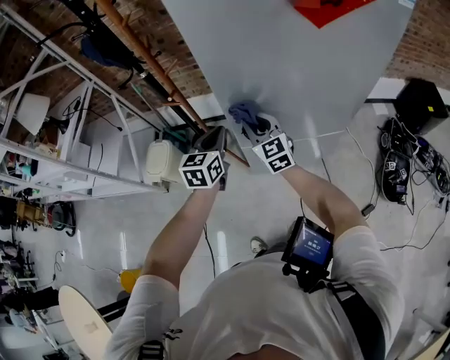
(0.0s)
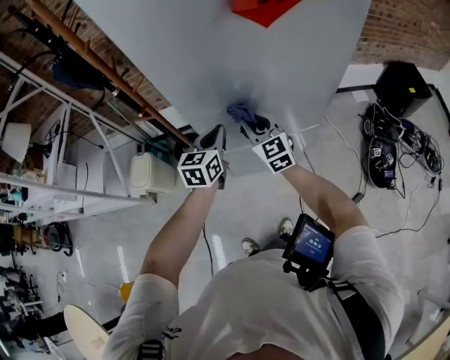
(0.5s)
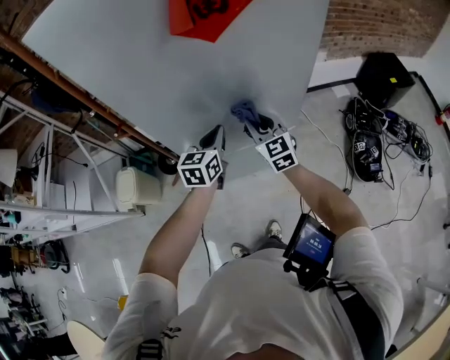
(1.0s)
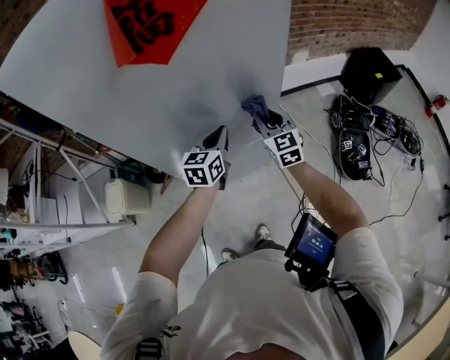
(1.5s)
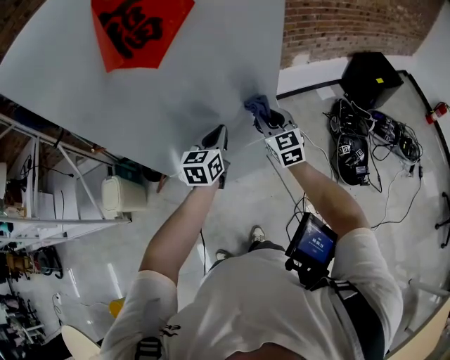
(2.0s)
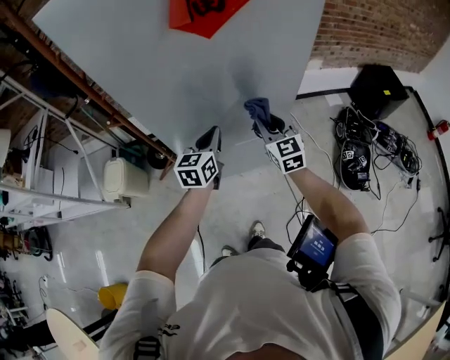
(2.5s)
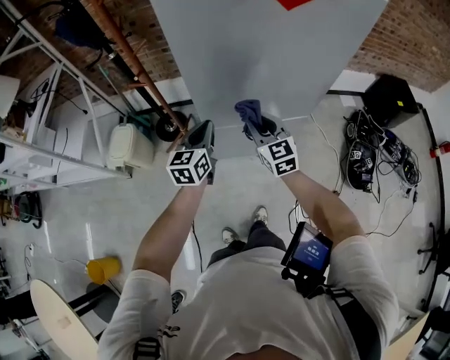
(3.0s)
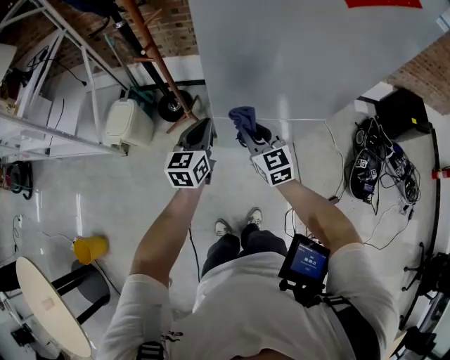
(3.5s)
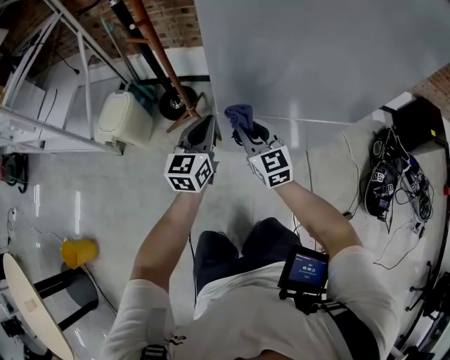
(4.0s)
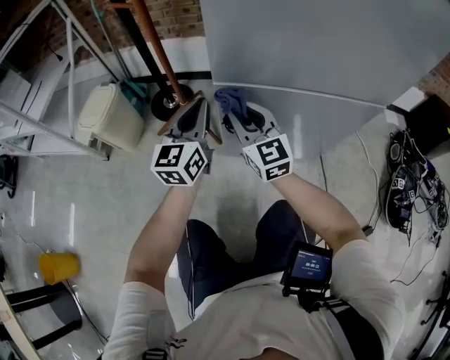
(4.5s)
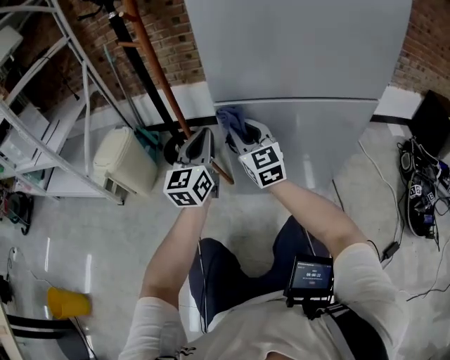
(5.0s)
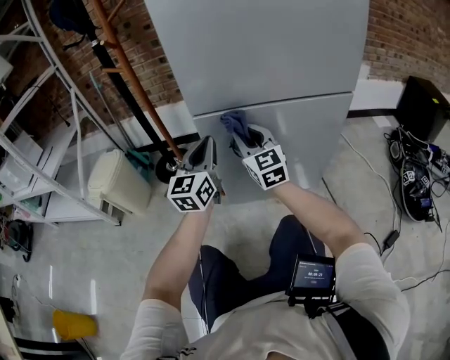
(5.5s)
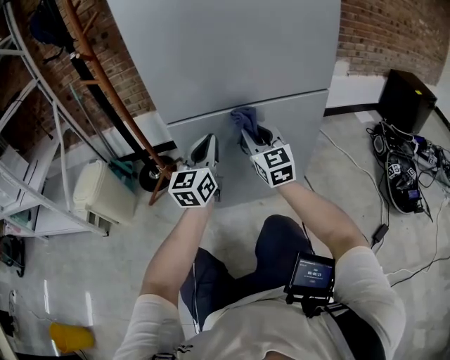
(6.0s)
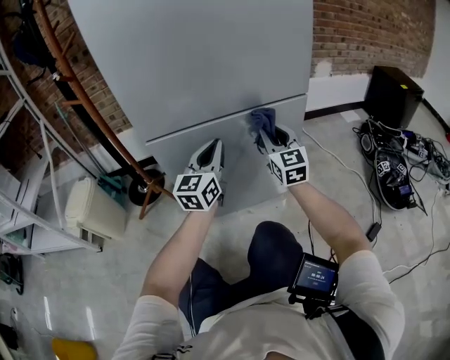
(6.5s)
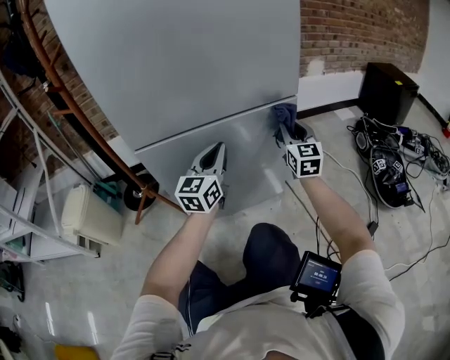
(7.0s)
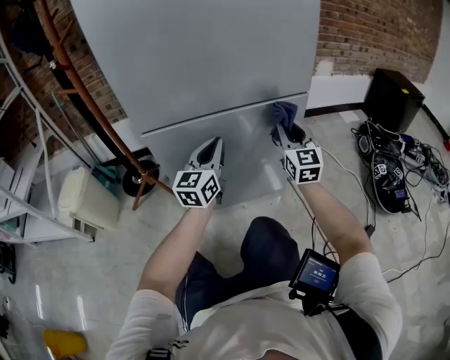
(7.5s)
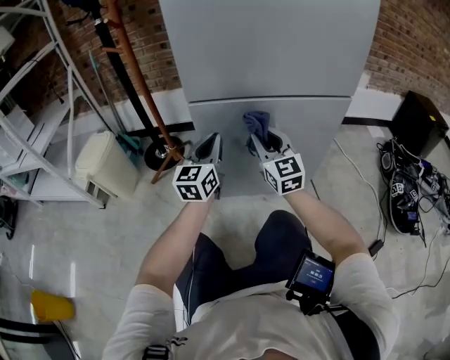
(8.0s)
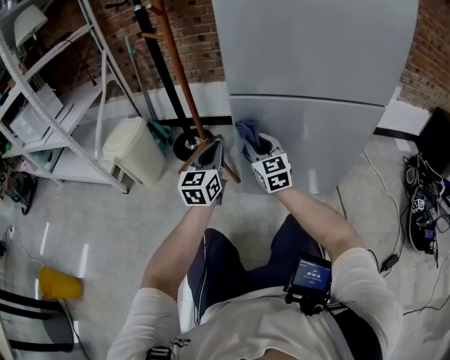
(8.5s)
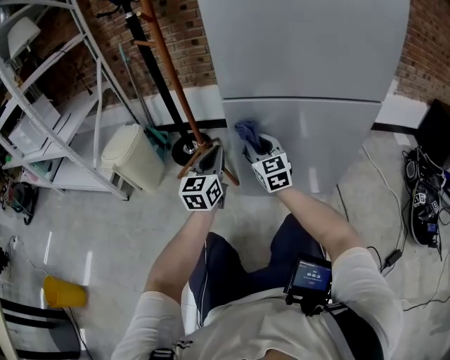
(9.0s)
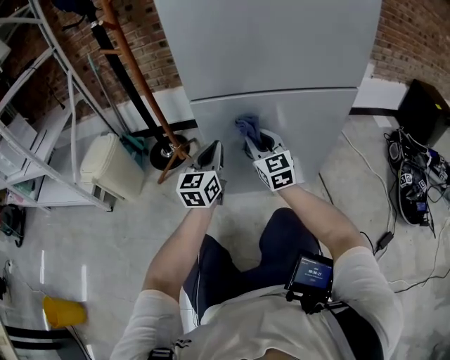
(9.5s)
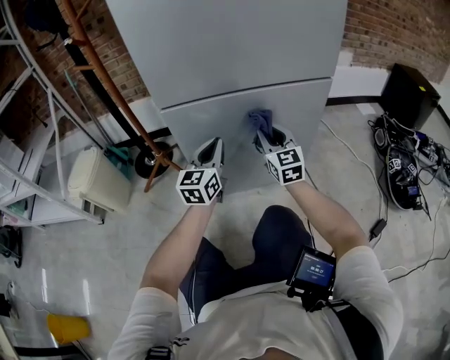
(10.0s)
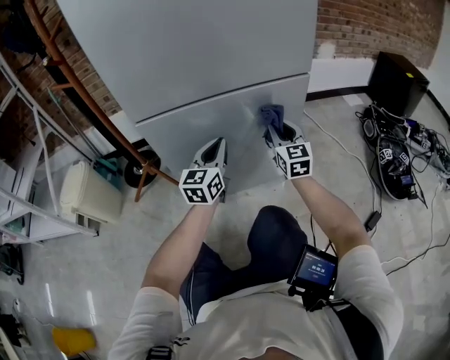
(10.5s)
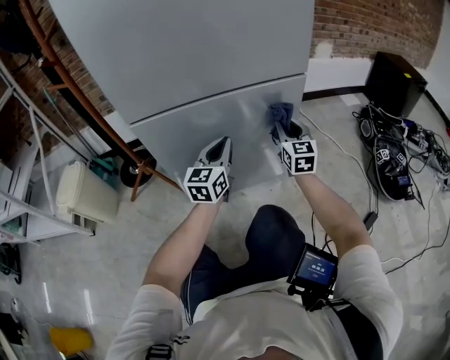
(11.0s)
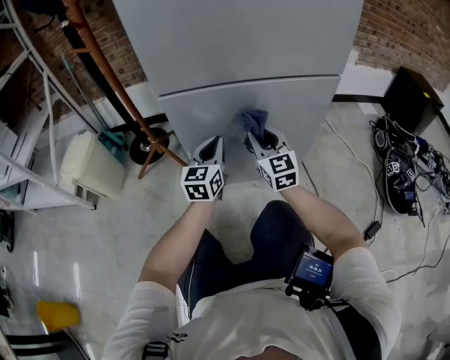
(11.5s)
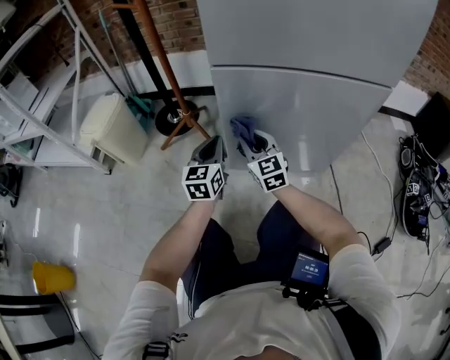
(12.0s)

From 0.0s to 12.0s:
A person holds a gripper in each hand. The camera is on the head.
From 0.0s to 2.0s: The grippers both shift to the right by some 35 cm.
From 2.0s to 4.0s: Both grippers travel together to the left and downward, approximately 40 cm. The right gripper rotates about 30 degrees. Meanwhile the left gripper turns by approximately 20 degrees.
From 4.0s to 6.0s: The left gripper goes about 20 cm downward and to the right, and rotates roughly 20 degrees, while the right gripper moves to the right and downward, approximately 20 cm, and changes its angle by approximately 30 degrees.
From 6.0s to 8.0s: The left gripper travels to the right and back again, some 15 cm each way, while the right gripper travels to the right and back again, roughly 25 cm each way.
From 8.0s to 10.0s: The left gripper is displaced to the right by some 5 cm. The right gripper moves to the right and downward, approximately 10 cm.
From 10.0s to 12.0s: The left gripper moves roughly 15 cm, while the right gripper moves some 20 cm, and rotates about 20 degrees.

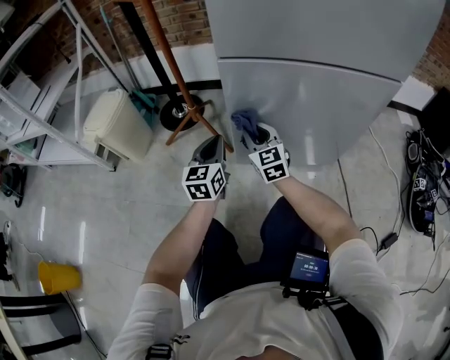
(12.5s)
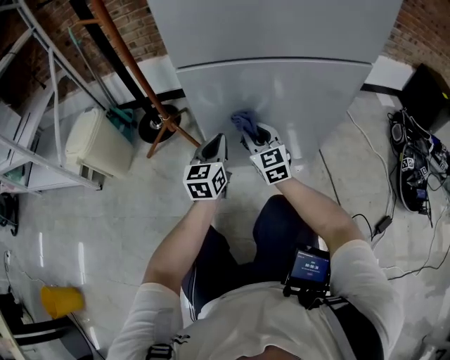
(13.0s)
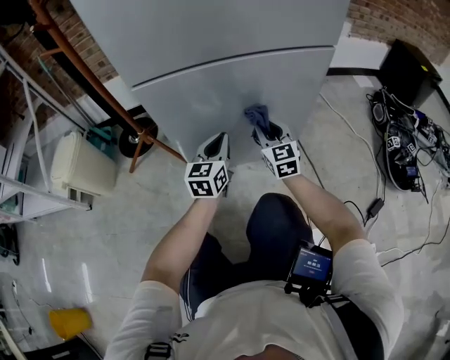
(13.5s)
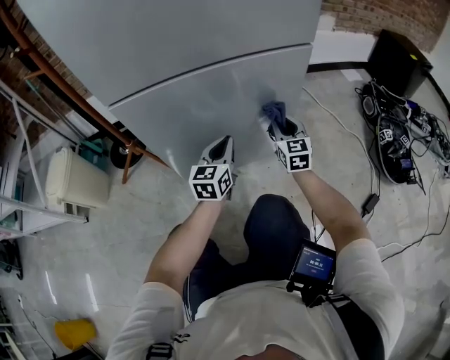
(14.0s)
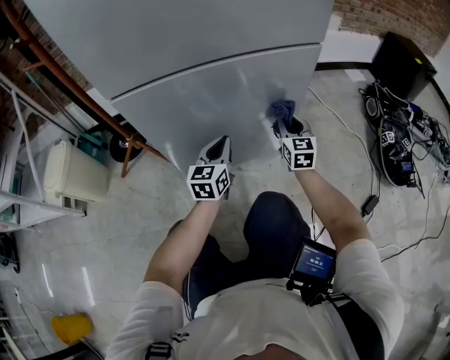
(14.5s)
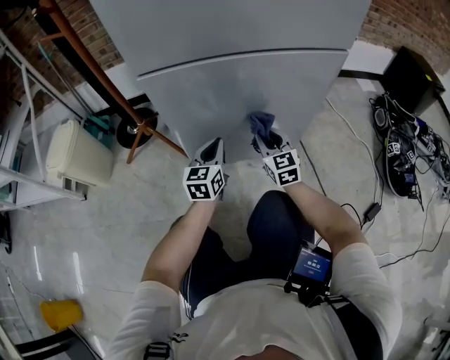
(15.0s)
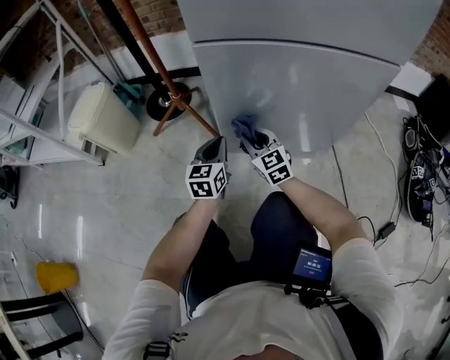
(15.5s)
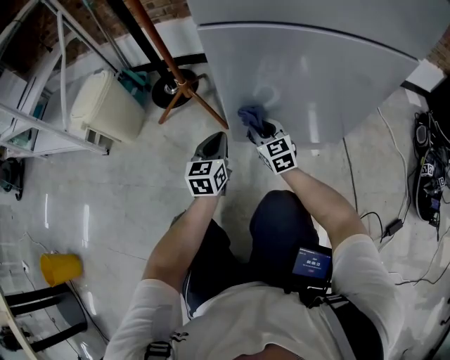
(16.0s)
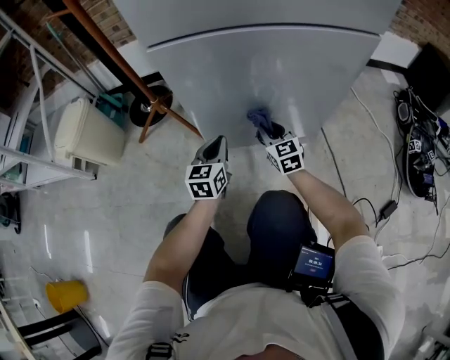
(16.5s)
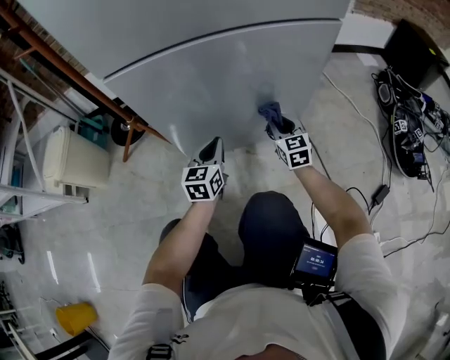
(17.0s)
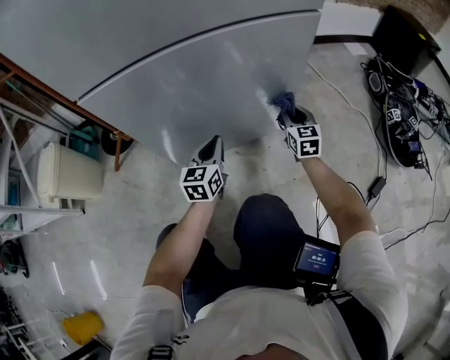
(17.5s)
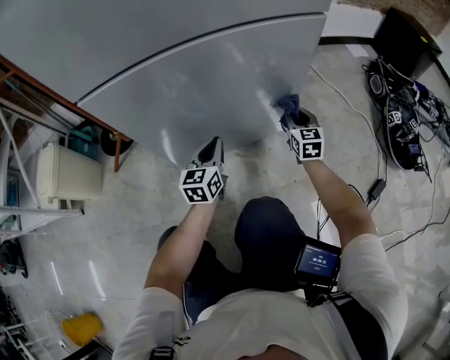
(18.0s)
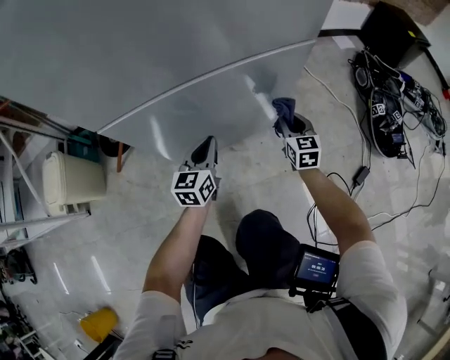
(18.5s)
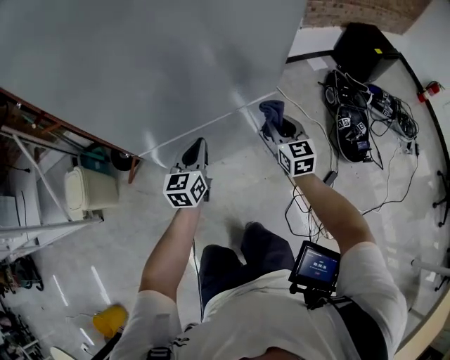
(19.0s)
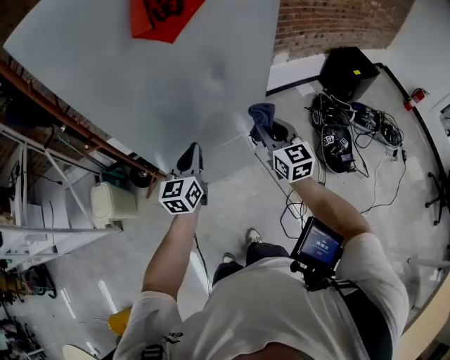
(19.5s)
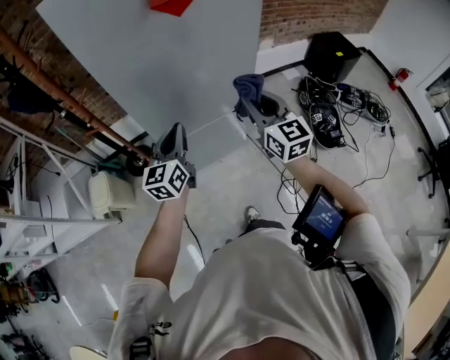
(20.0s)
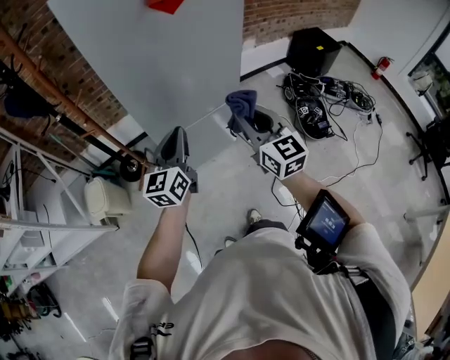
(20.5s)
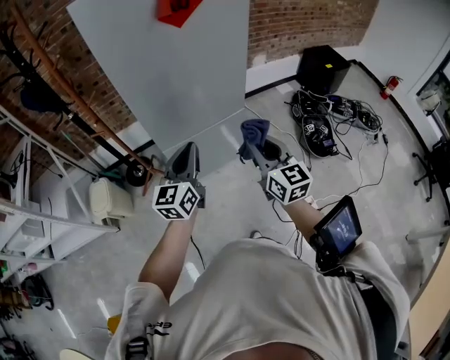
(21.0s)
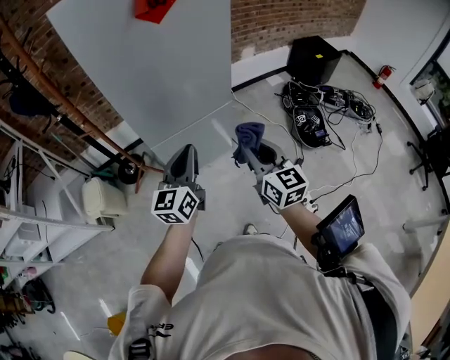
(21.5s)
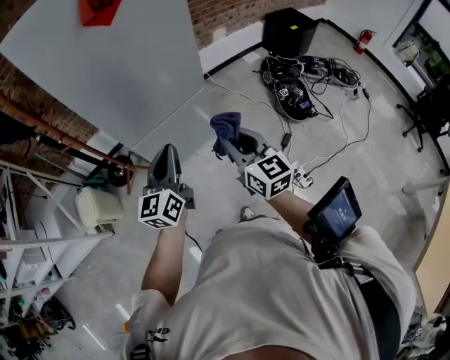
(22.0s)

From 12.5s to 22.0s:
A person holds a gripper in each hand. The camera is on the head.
From 12.5s to 14.5s: The left gripper ends up some 25 cm from where it was, and changes its angle by roughly 20 degrees. The right gripper shifts by about 40 cm, and rotates roughly 30 degrees.
From 14.5s to 16.5s: The right gripper changes its angle by approximately 20 degrees.
From 16.5s to 18.0s: The left gripper heads to the right and forward, covering approximately 15 cm. The right gripper travels to the right by roughly 25 cm, and turns by about 30 degrees.
From 18.0s to 20.0s: The two grippers go roughly 70 cm upward. The right gripper rotates roughly 20 degrees.
From 20.0s to 22.0s: The left gripper heads backward and to the right, covering some 15 cm, while the right gripper travels backward by roughly 20 cm.

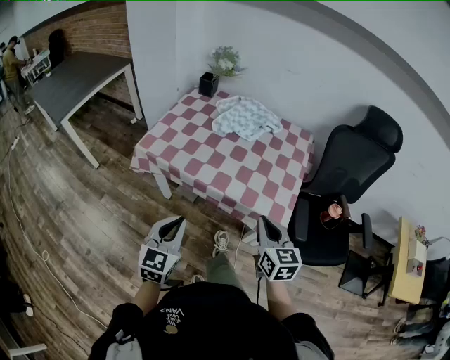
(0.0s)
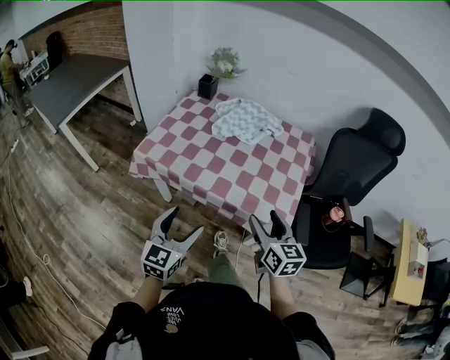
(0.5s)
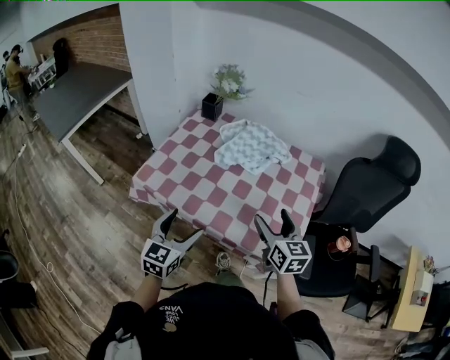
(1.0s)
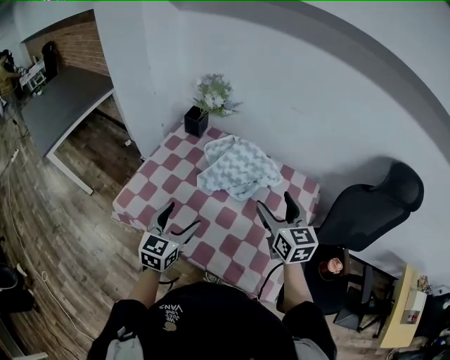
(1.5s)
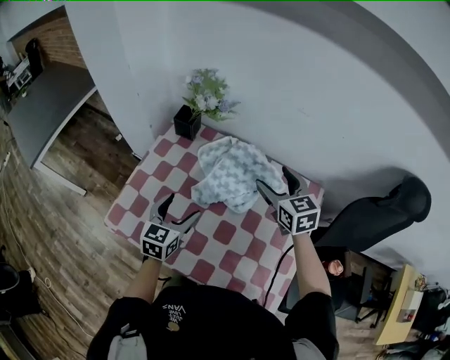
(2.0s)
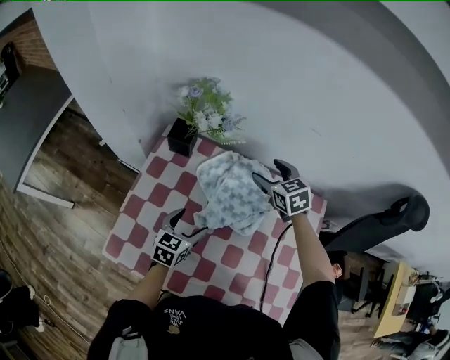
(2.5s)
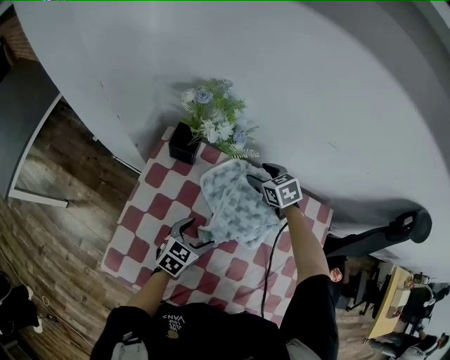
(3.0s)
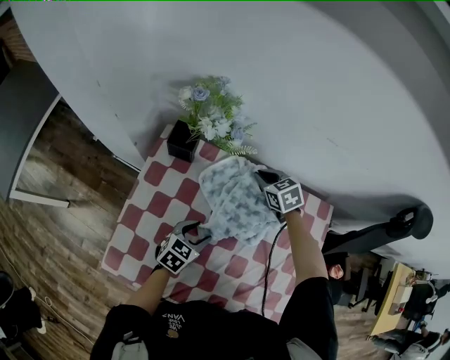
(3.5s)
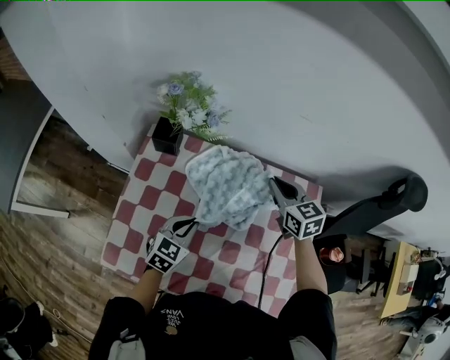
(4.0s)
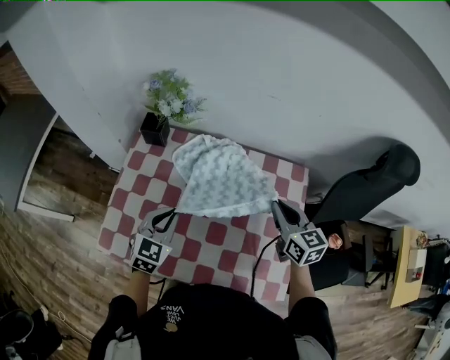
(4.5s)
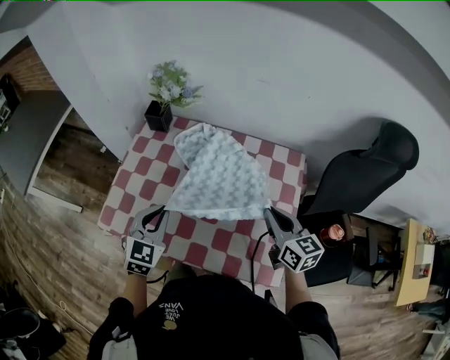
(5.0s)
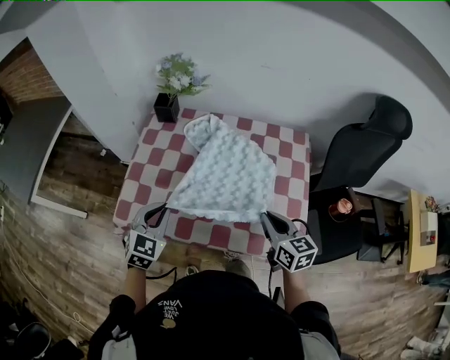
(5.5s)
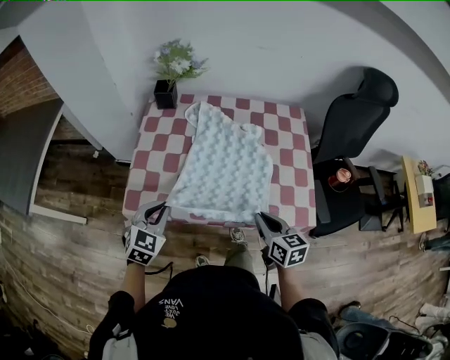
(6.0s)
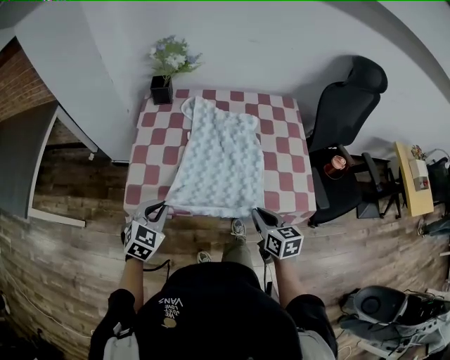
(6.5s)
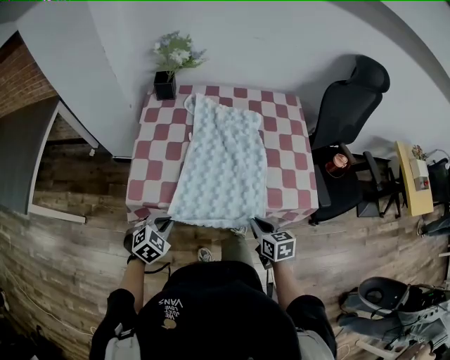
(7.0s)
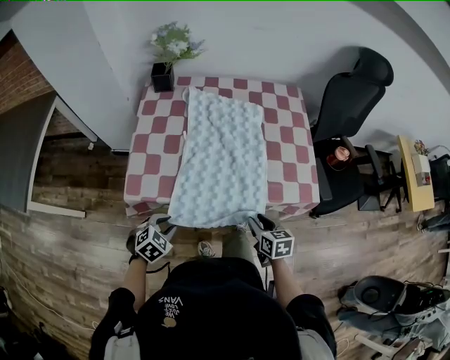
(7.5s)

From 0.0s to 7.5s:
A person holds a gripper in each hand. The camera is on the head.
From 0.0s to 2.0s: Both grippers are carried forward, some 50 cm. The left gripper opens its fingers. Meanwhile the right gripper opens.
From 2.0s to 4.0s: The left gripper goes some 10 cm downward and forward, rotates roughly 30 degrees, and closes up. The right gripper shifts about 10 cm forward and downward, and closes.
From 4.0s to 5.5s: The left gripper is displaced backward and upward by roughly 20 cm, and swivels approximately 20 degrees. Meanwhile the right gripper shifts about 35 cm backward.
From 5.5s to 7.5s: The left gripper heads downward and backward, covering roughly 25 cm, and changes its angle by roughly 40 degrees; the right gripper shifts roughly 25 cm backward, downward and to the left, and turns by approximately 20 degrees.
